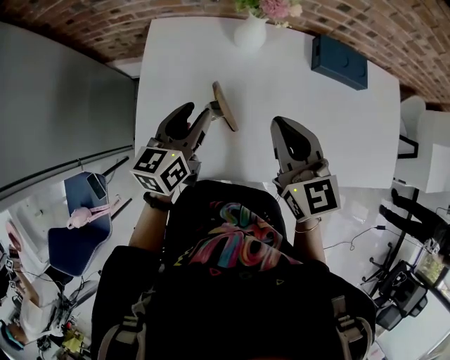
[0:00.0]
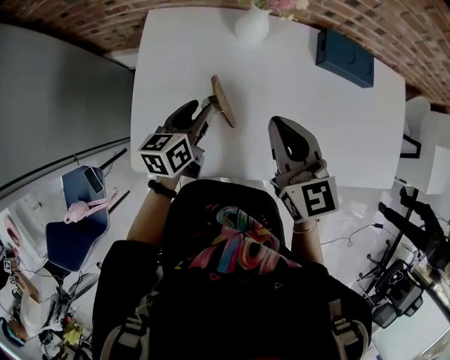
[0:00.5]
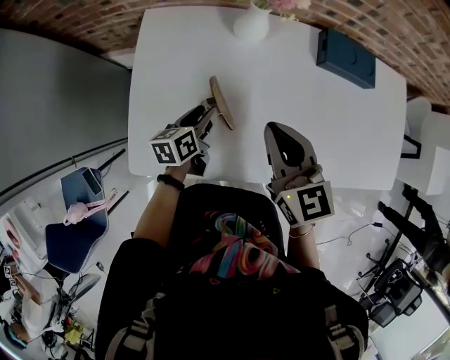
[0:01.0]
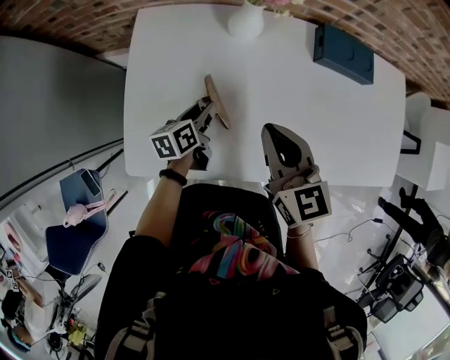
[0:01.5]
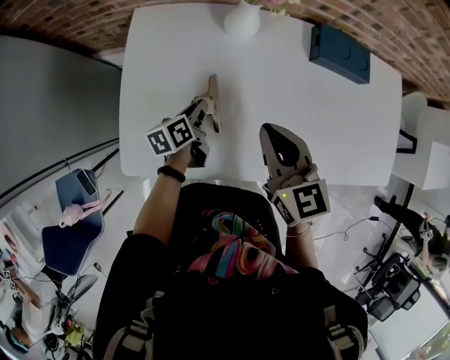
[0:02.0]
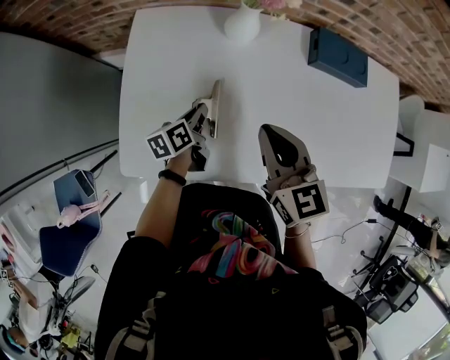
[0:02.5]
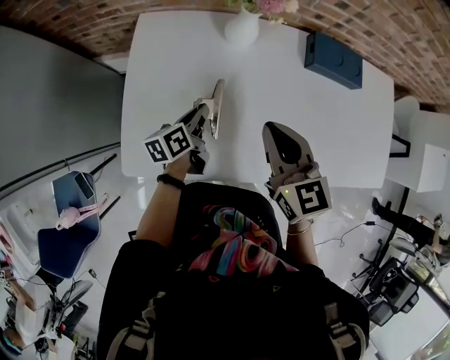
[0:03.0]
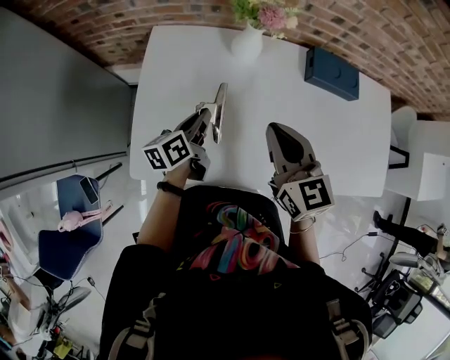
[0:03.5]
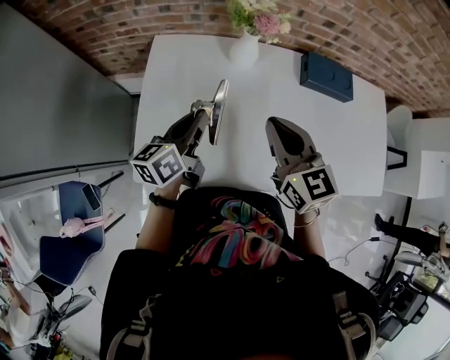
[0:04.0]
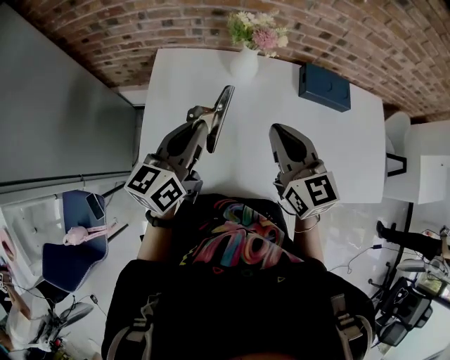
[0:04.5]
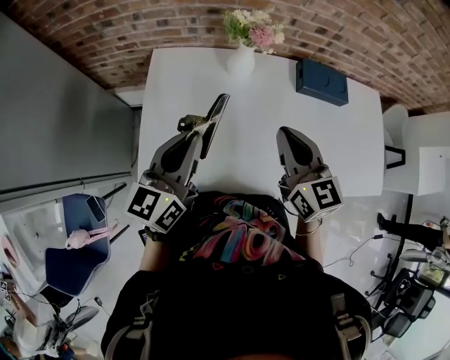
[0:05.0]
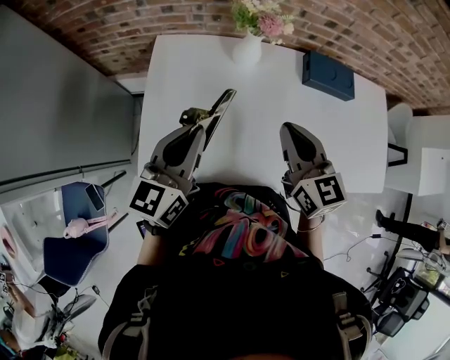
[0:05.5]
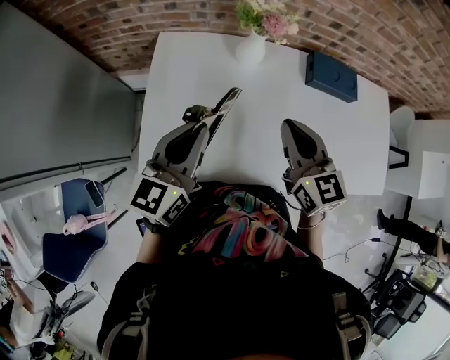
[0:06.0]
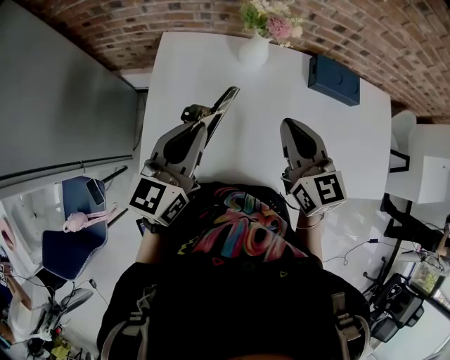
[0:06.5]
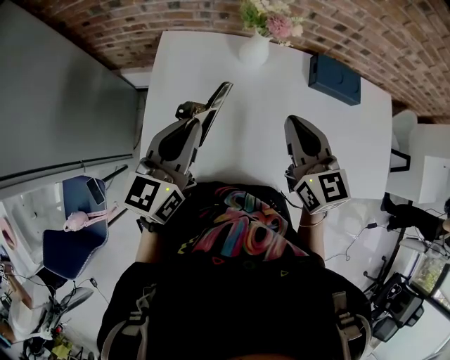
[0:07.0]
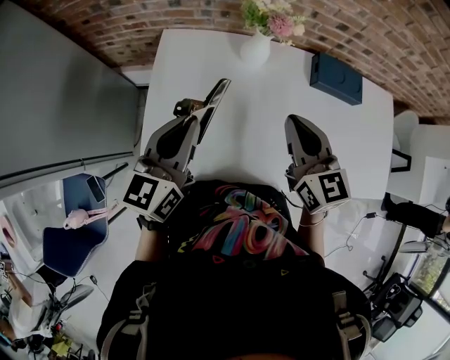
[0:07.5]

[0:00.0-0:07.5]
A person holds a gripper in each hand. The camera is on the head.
0:00.0 to 0:02.0: The right gripper travels downward by approximately 5 cm; the left gripper heads downward, covering about 20 cm, swivels some 30 degrees, and closes its fingers.
0:02.0 to 0:04.0: The right gripper heads upward, covering some 5 cm; the left gripper shifts approximately 20 cm upward, and rotates some 30 degrees.
0:04.0 to 0:05.5: The left gripper travels upward by about 10 cm, and changes its angle by some 30 degrees.
0:05.5 to 0:07.5: There are only small adjustments of the grippers.

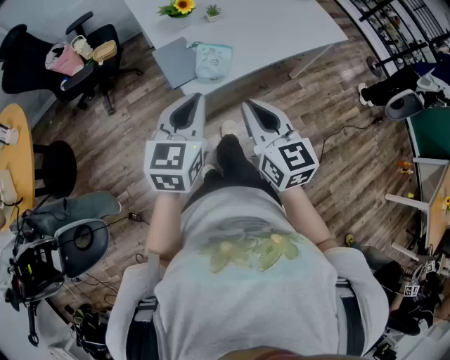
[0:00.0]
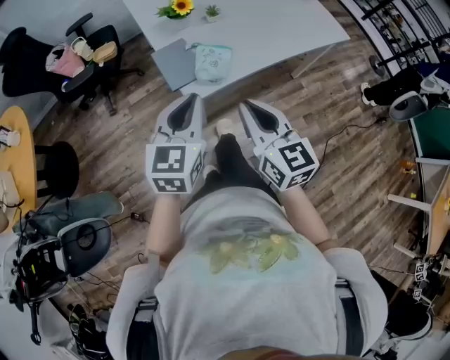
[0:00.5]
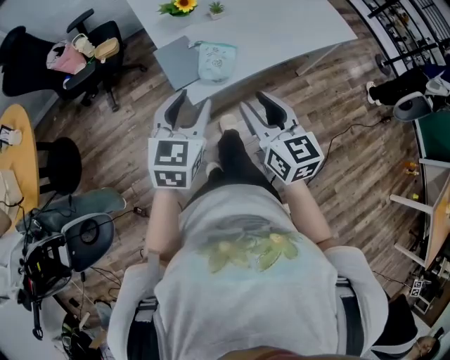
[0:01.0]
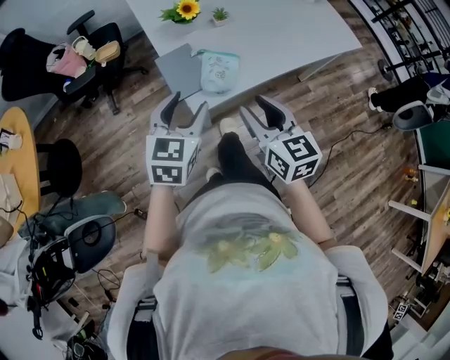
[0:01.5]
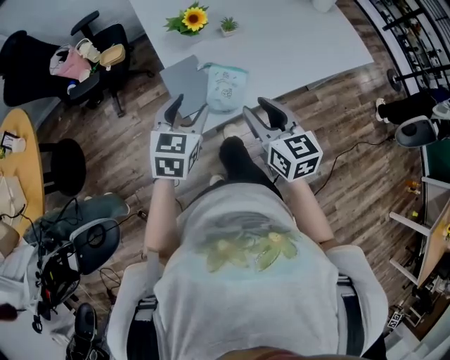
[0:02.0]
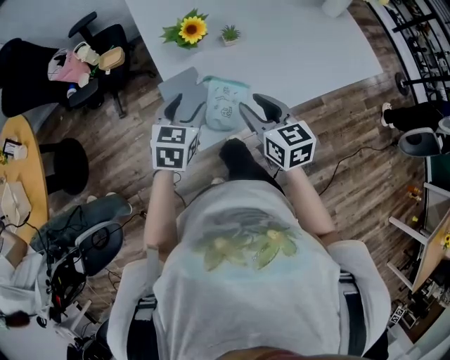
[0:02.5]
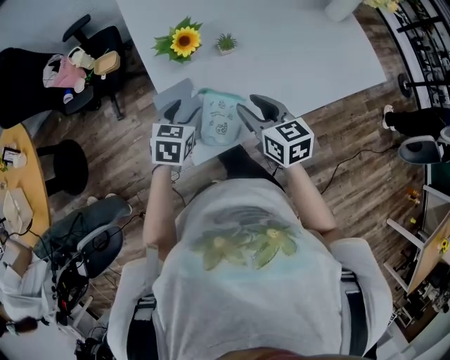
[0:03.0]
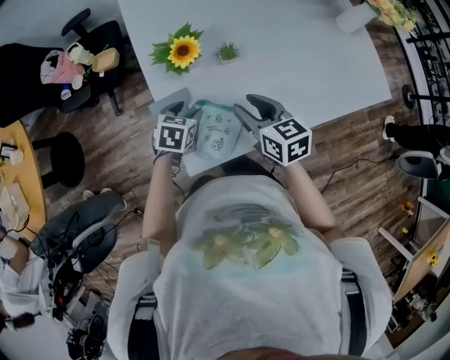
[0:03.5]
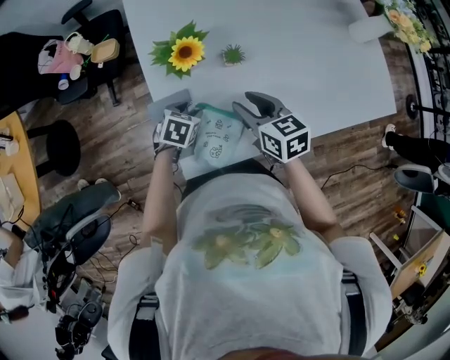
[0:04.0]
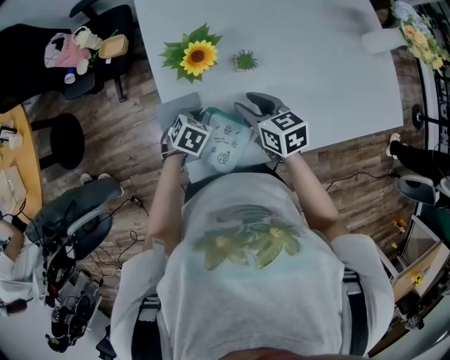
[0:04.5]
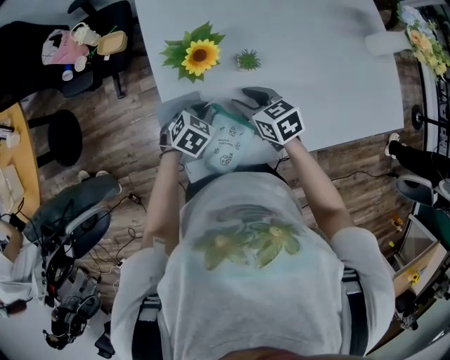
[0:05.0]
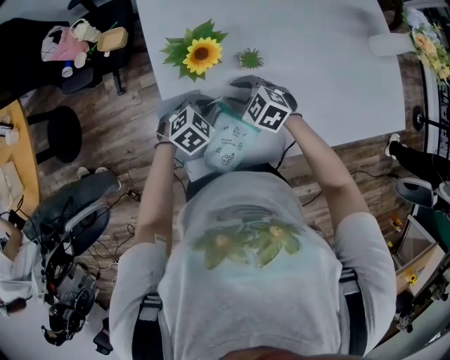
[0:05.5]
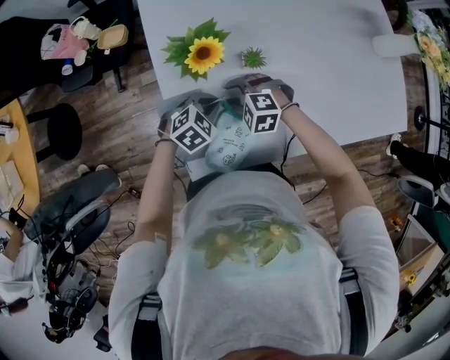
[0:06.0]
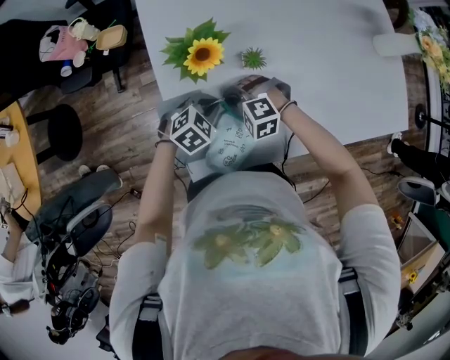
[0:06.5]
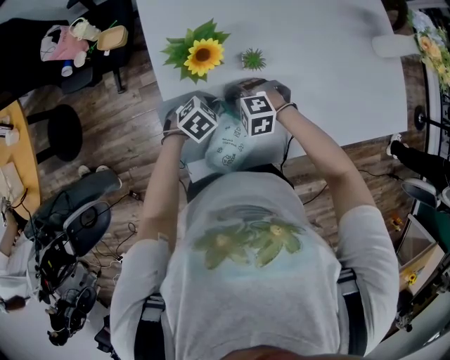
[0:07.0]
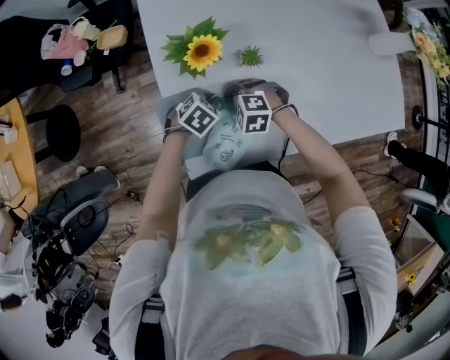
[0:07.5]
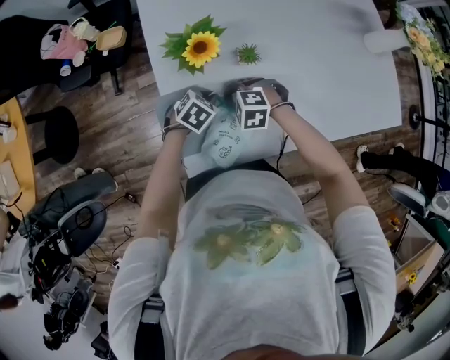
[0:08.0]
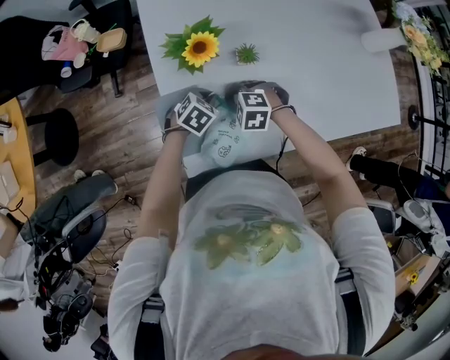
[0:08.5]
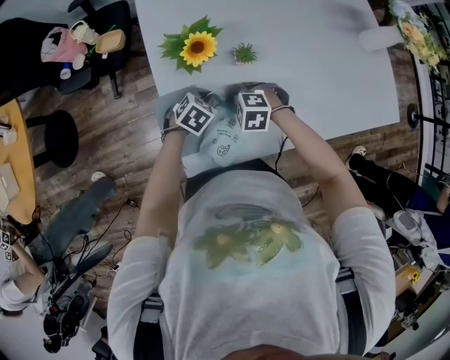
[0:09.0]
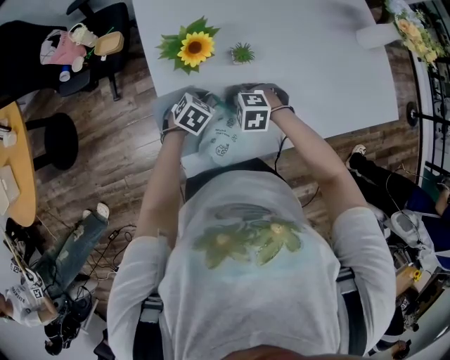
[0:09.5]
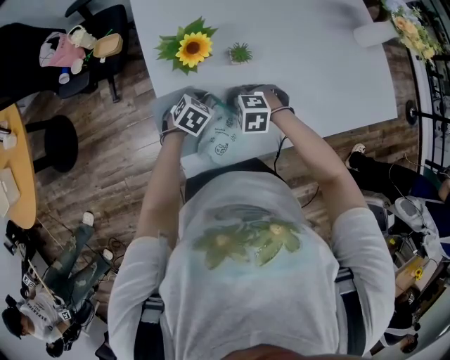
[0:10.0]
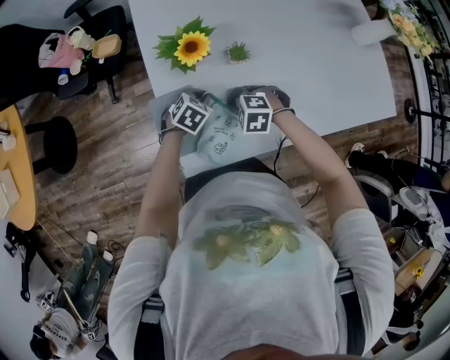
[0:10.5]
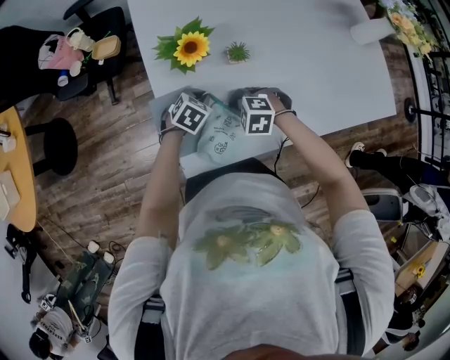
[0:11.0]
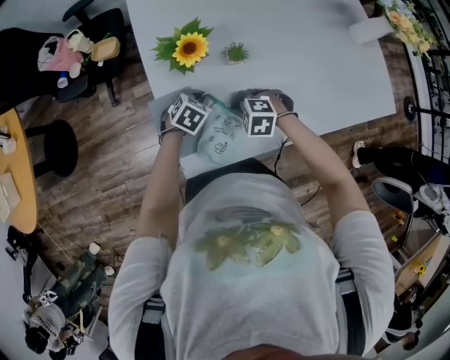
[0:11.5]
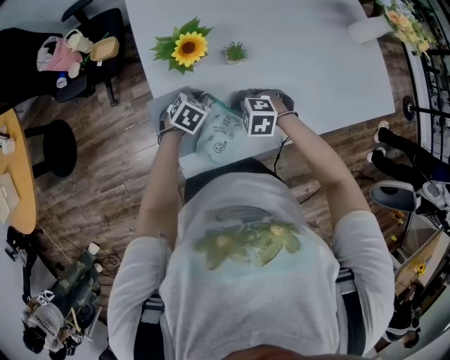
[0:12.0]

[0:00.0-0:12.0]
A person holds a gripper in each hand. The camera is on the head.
0:00.0 to 0:02.0: The right gripper is displaced forward by approximately 15 cm, and opens; the left gripper moves forward and downward, approximately 15 cm, and opens up.
0:02.0 to 0:04.0: The left gripper travels downward and forward by about 30 cm, and angles its fingers downward, by approximately 30 degrees; the right gripper travels forward and downward by roughly 25 cm, and rotates roughly 20 degrees.
0:04.0 to 0:06.0: The left gripper rotates roughly 30 degrees, and closes; the right gripper heads downward, covering roughly 15 cm, and rotates around the line of its fingers by roughly 70 degrees, counterclockwise from behind.
0:06.0 to 0:08.0: The right gripper closes its fingers.
0:08.0 to 0:12.0: The grippers make only small movements.

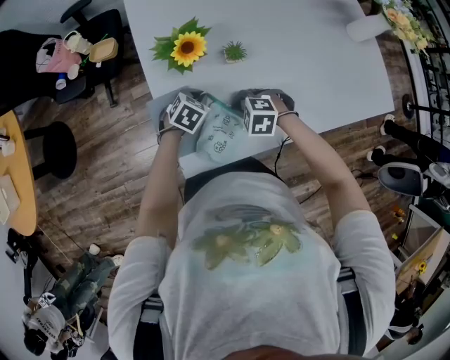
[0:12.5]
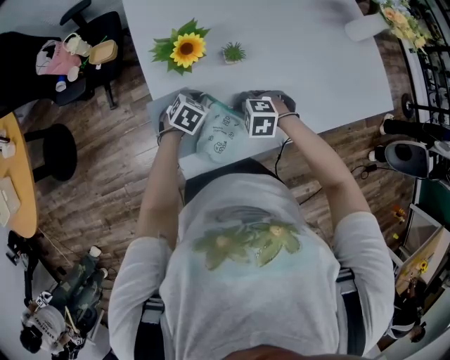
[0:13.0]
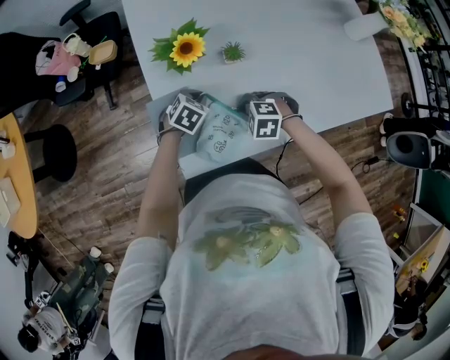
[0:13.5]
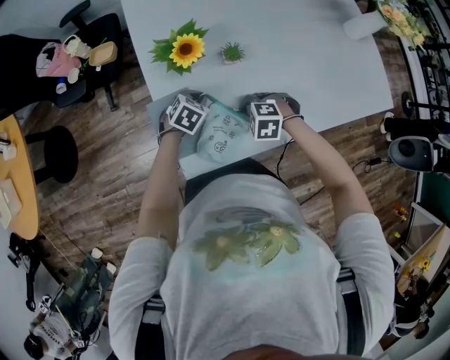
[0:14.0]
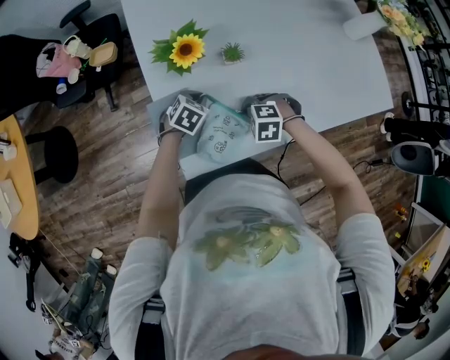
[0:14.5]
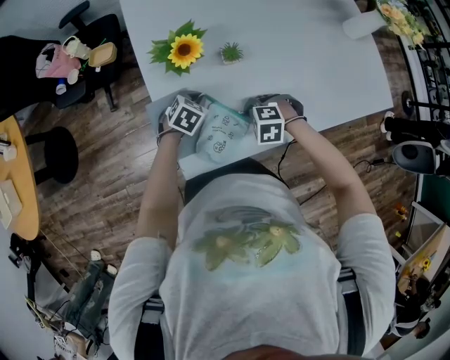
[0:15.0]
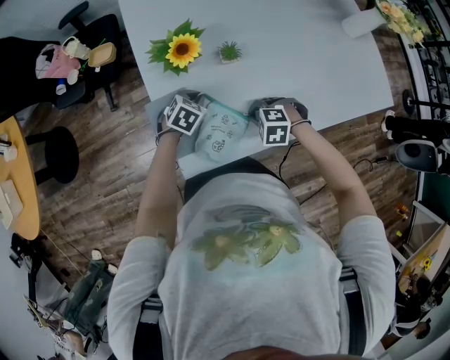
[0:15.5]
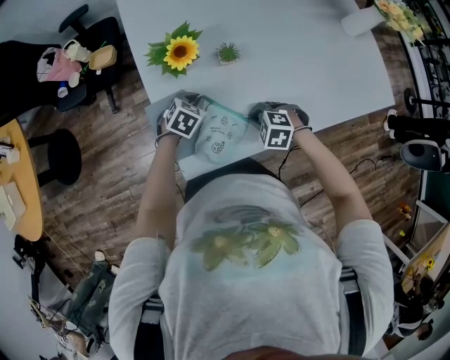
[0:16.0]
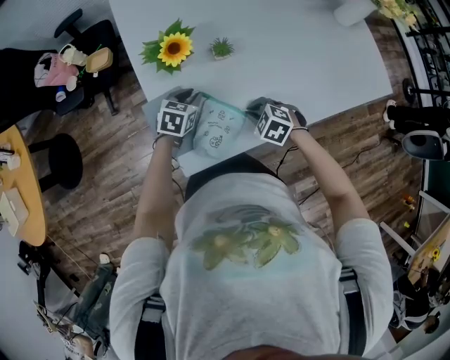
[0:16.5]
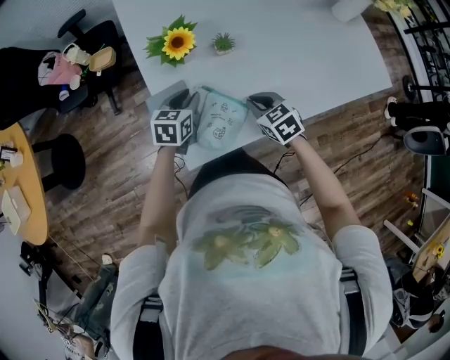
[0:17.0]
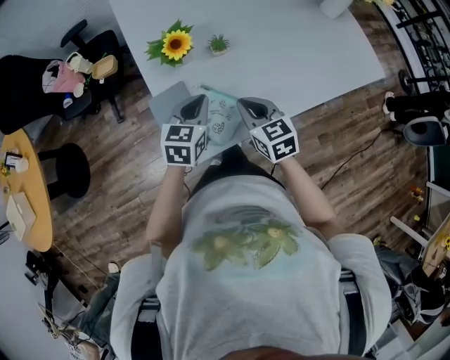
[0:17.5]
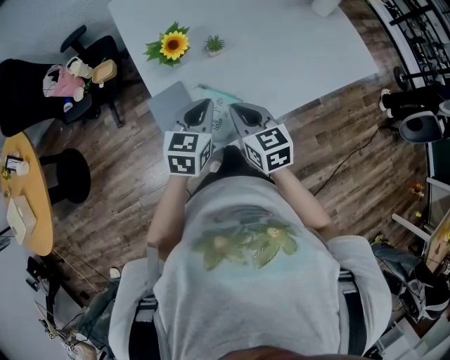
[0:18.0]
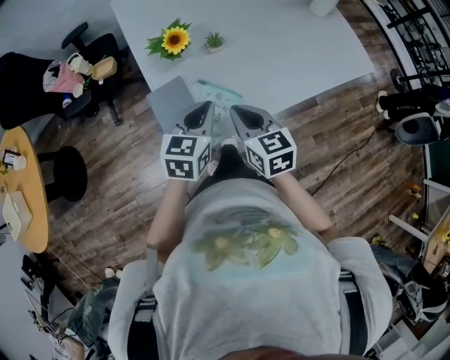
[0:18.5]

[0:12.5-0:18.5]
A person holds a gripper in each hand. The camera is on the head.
0:12.5 to 0:14.5: There are only small adjustments of the grippers.
0:14.5 to 0:16.5: The right gripper changes its angle by roughly 30 degrees.
0:16.5 to 0:18.5: The left gripper heads upward and backward, covering some 25 cm, and changes its angle by approximately 20 degrees; the right gripper travels upward by some 20 cm, and points its fingers about 40 degrees further upward.

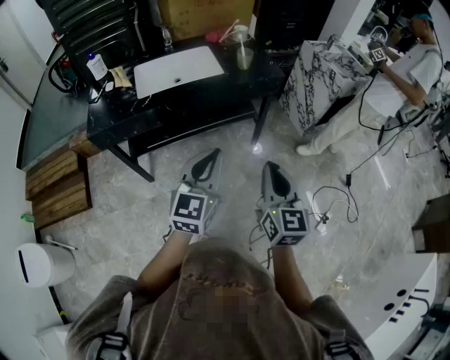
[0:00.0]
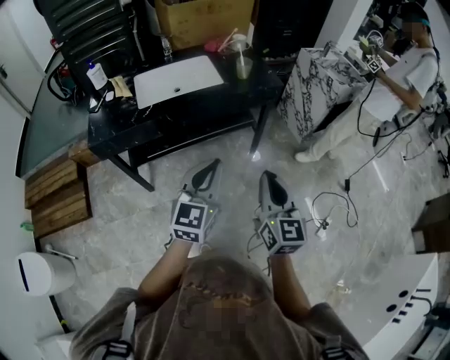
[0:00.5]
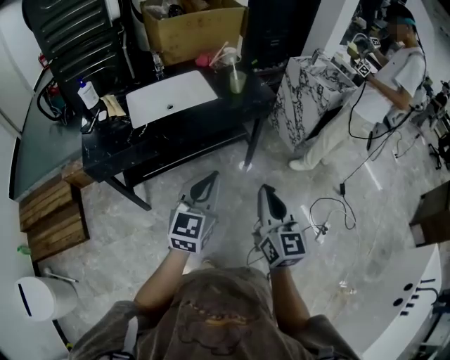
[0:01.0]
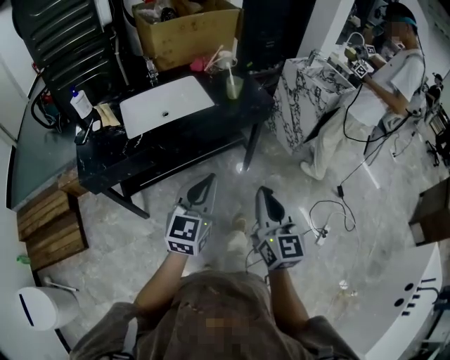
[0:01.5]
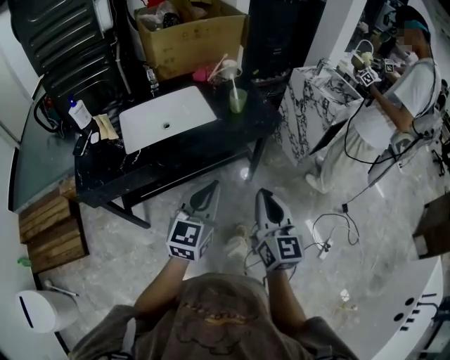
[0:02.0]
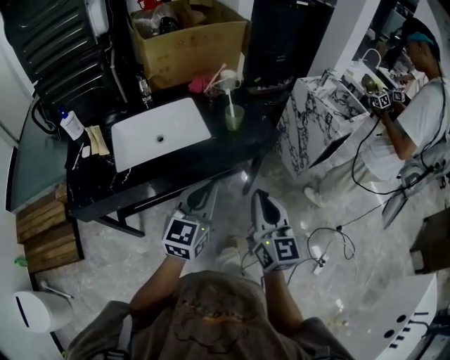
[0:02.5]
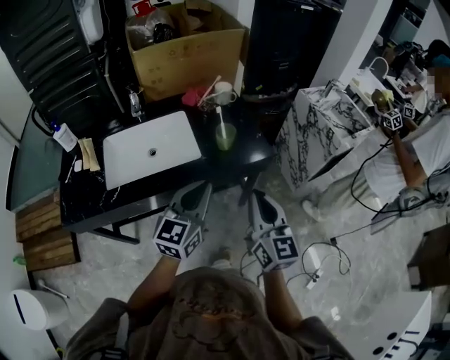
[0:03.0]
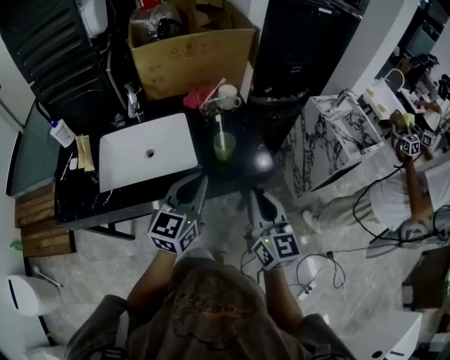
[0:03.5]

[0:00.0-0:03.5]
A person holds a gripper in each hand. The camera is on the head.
0:00.0 to 0:02.0: Both grippers move forward, some 10 cm.
0:02.0 to 0:03.5: The two grippers go roughly 25 cm forward.
